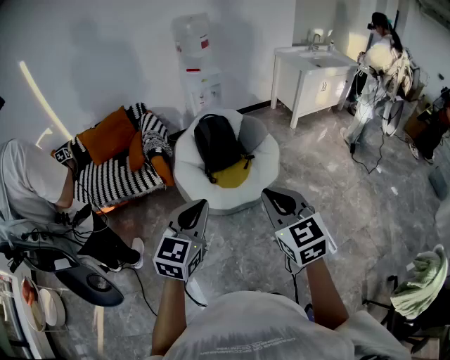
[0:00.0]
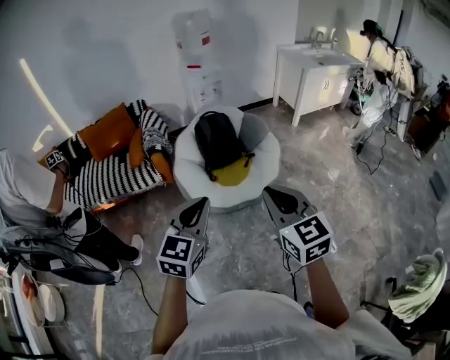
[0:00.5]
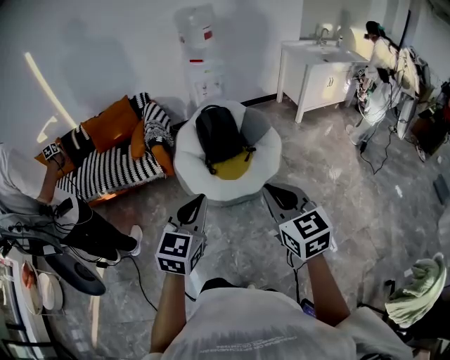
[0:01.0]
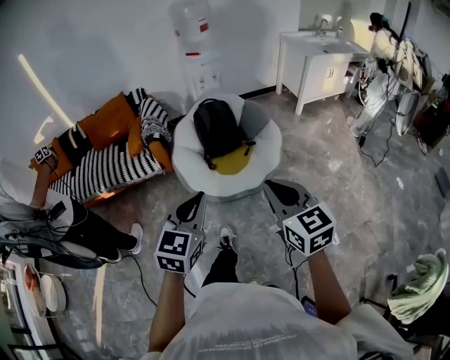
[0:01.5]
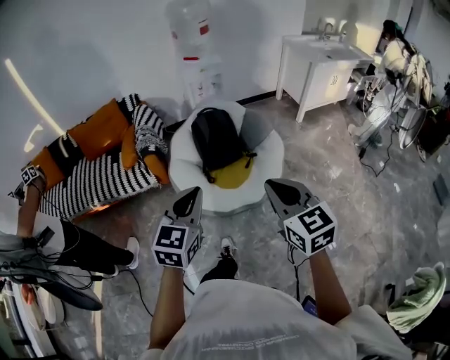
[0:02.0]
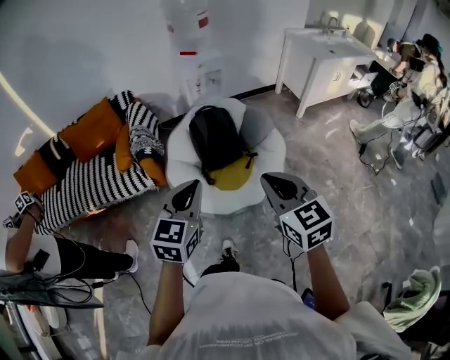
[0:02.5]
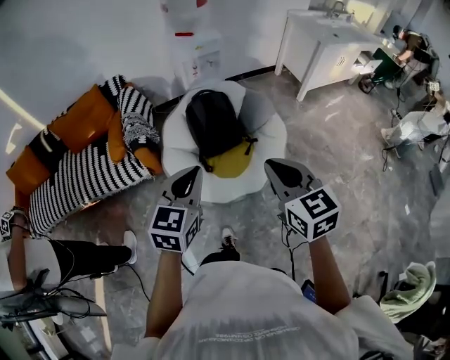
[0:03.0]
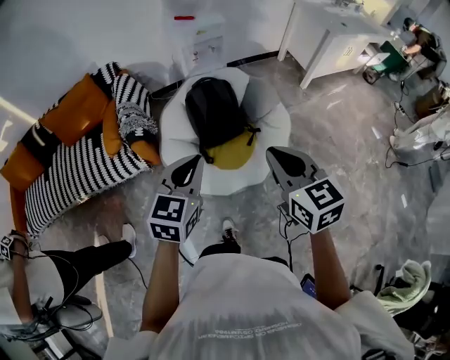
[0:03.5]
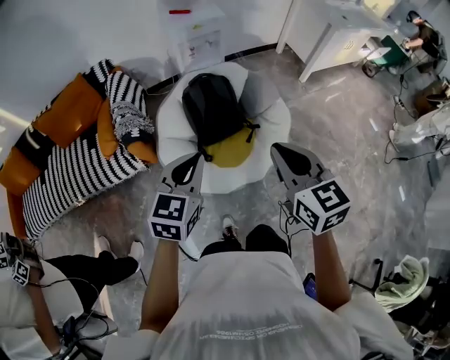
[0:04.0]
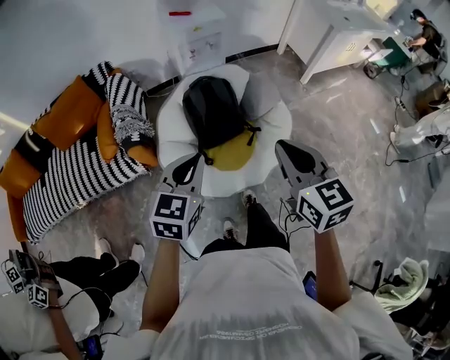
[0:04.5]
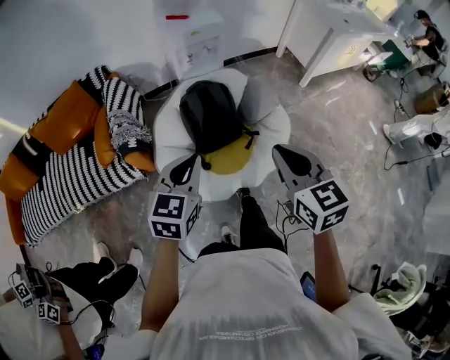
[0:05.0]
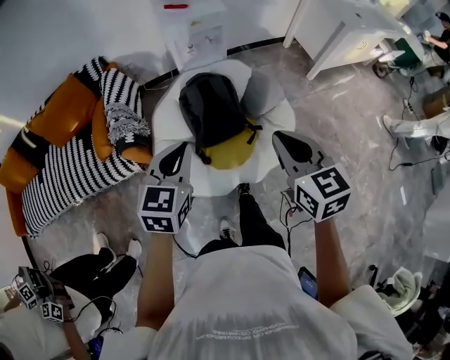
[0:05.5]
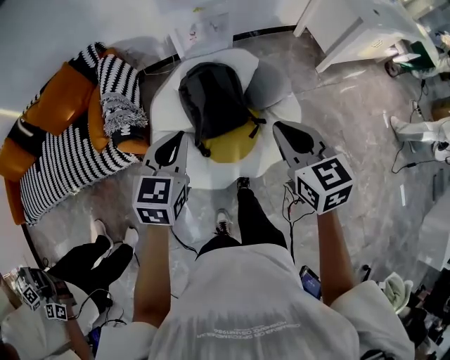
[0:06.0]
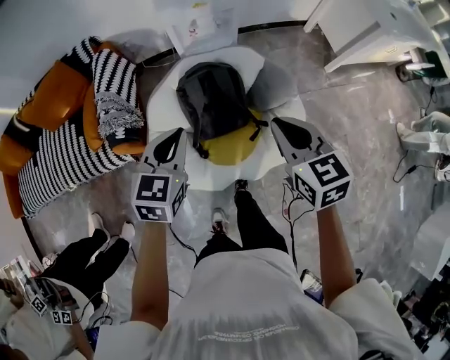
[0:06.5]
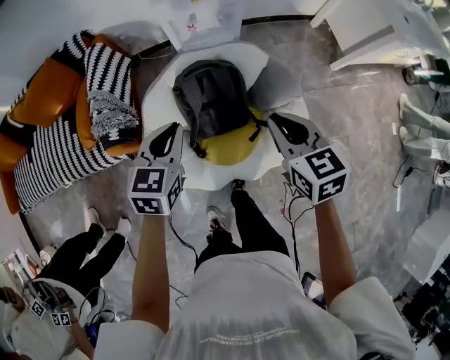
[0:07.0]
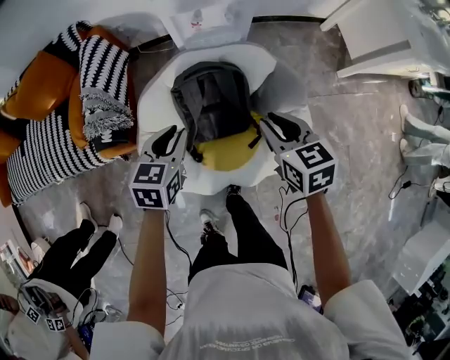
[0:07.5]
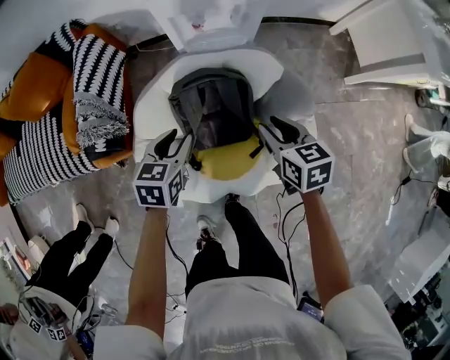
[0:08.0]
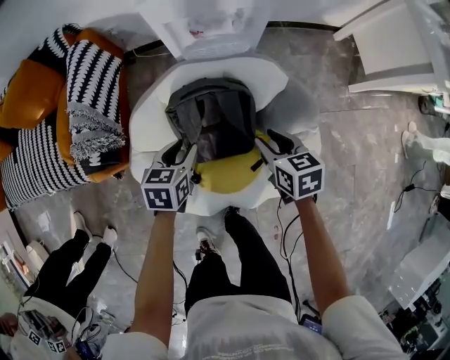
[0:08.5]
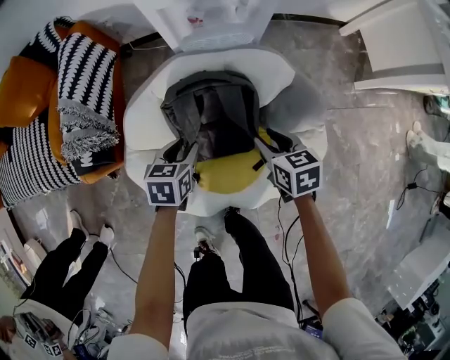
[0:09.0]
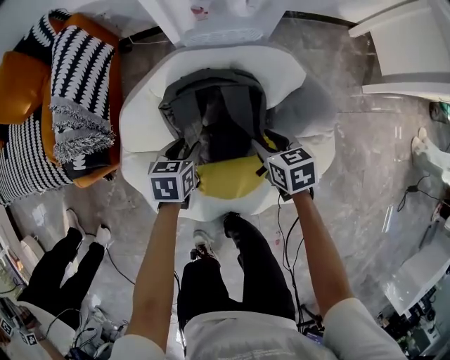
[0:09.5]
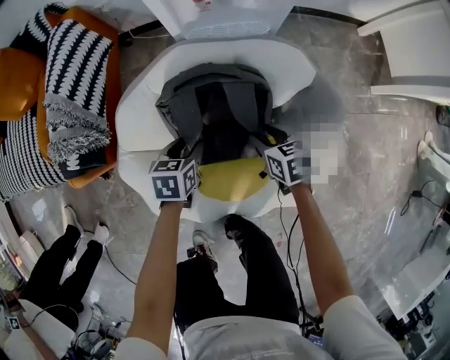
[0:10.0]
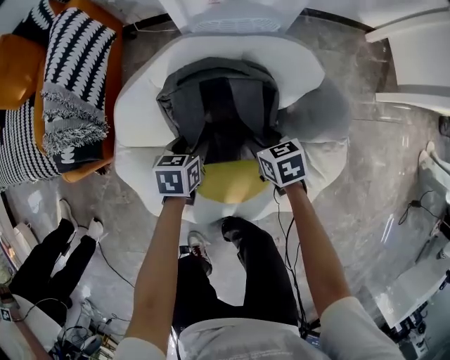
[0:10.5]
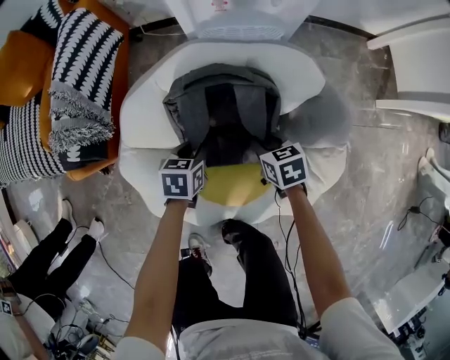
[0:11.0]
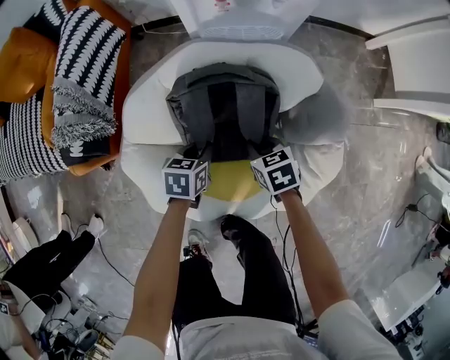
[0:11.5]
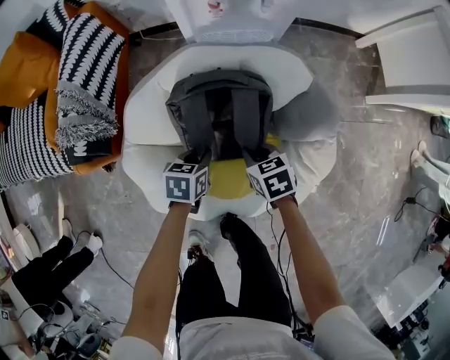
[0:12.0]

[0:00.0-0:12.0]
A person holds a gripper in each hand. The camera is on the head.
0:00.0 to 0:02.0: Both grippers move forward, approximately 15 cm.
0:02.0 to 0:04.0: Both grippers move forward, some 25 cm.
0:04.0 to 0:06.0: The left gripper is displaced forward by approximately 15 cm; the right gripper shifts approximately 20 cm forward and downward.
0:06.0 to 0:08.0: The grippers both shift downward and forward by roughly 35 cm. The right gripper turns by some 20 degrees, and opens up. The left gripper rotates some 30 degrees, and opens its fingers.
0:08.0 to 0:10.0: The two grippers go about 25 cm downward.
0:10.0 to 0:12.0: The right gripper changes place by some 5 cm, and closes; the left gripper shifts by about 5 cm, and closes up.

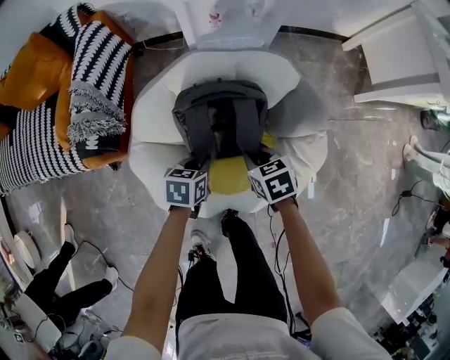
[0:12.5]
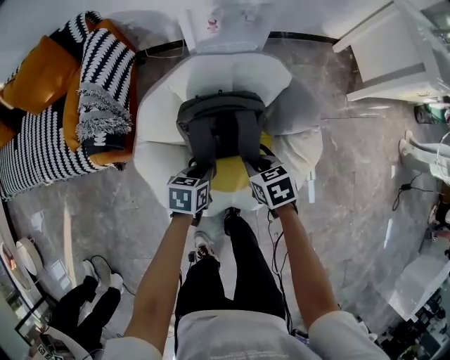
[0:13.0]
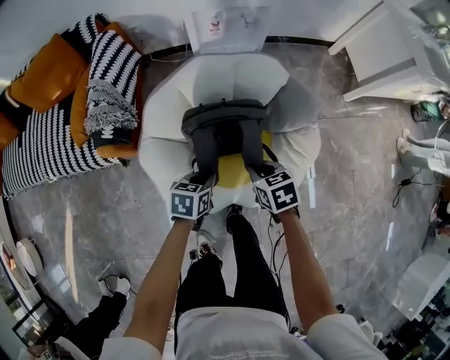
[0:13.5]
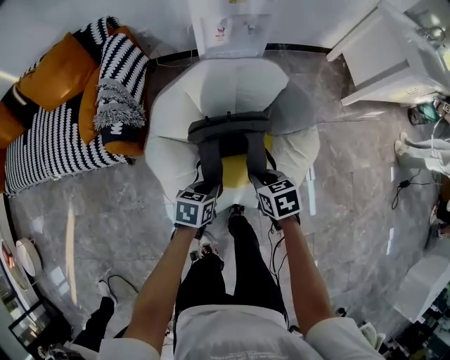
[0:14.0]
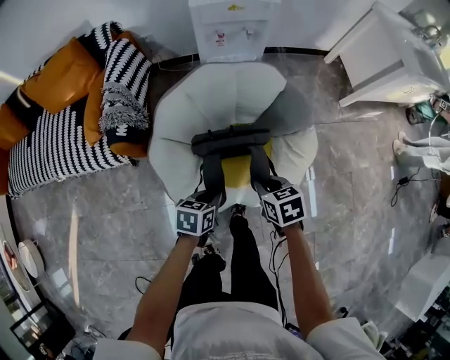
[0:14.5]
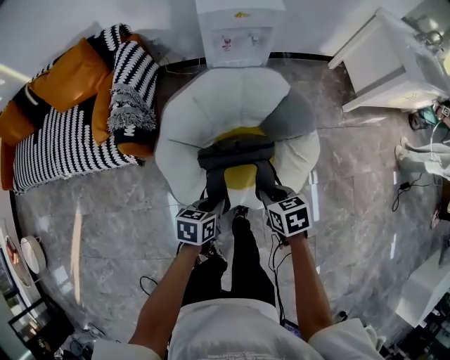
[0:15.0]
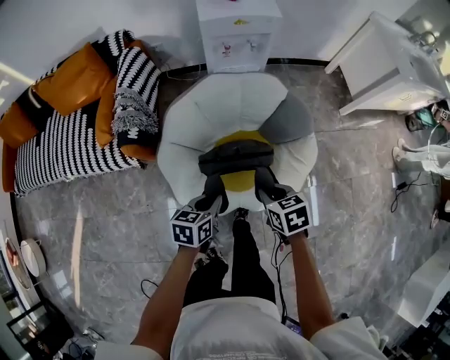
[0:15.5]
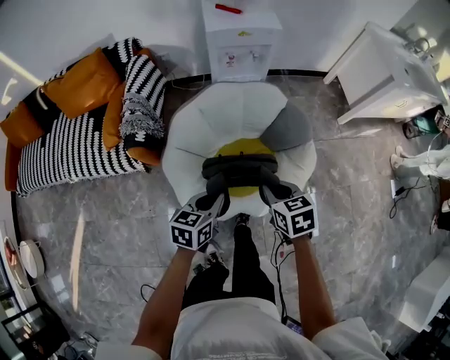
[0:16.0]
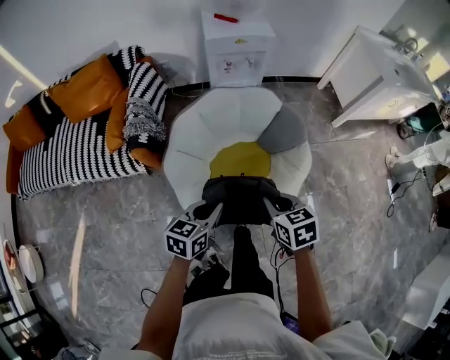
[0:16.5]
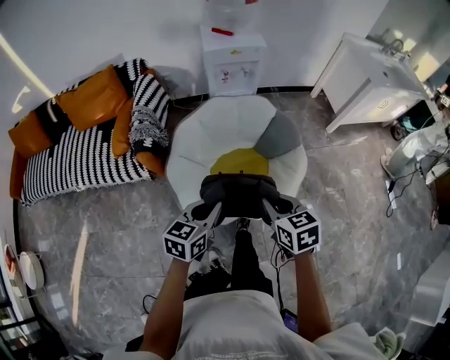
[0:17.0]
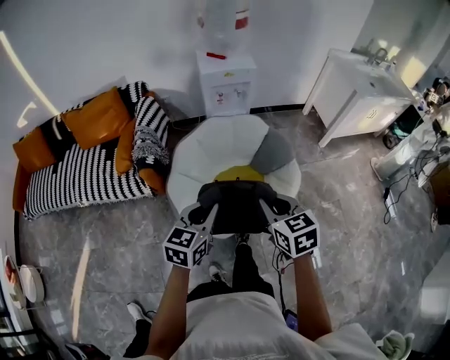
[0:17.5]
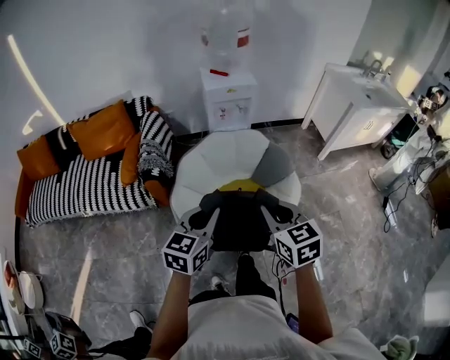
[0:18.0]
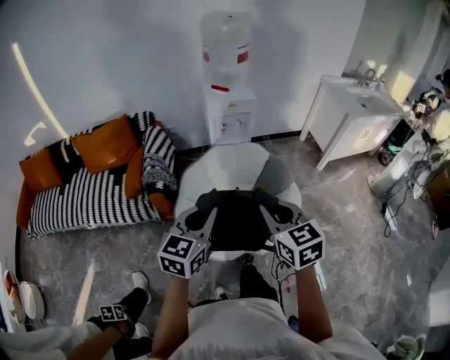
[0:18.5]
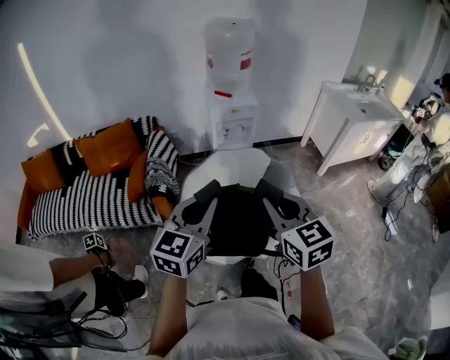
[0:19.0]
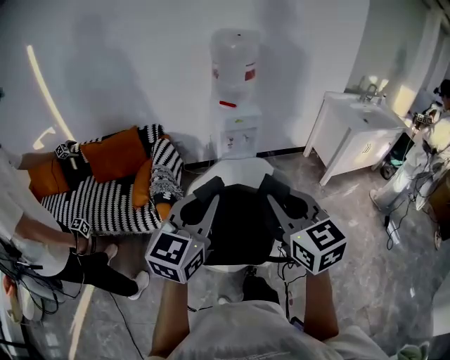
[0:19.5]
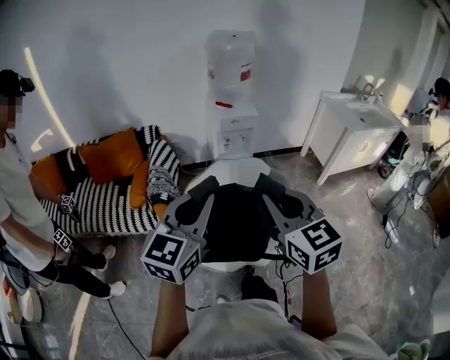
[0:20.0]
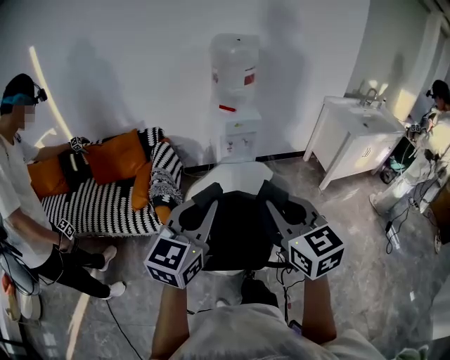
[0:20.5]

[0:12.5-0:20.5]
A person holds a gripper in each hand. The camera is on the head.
0:12.5 to 0:14.5: Both grippers travel together backward and upward, roughly 20 cm.
0:14.5 to 0:16.5: The right gripper travels upward and backward by some 15 cm. Meanwhile the left gripper travels upward by some 15 cm, and turns by about 20 degrees.
0:16.5 to 0:18.5: Both grippers travel together upward, approximately 25 cm. The left gripper swivels roughly 30 degrees. Meanwhile the right gripper swivels approximately 30 degrees.
0:18.5 to 0:20.5: The two grippers go roughly 10 cm upward.

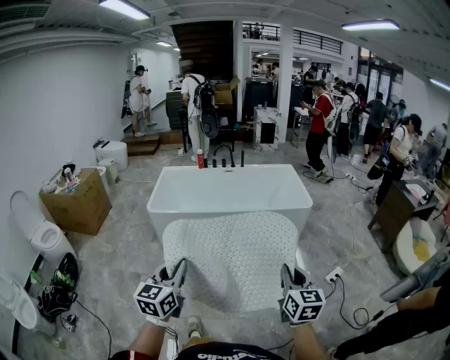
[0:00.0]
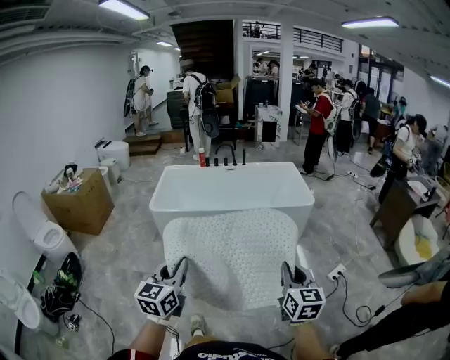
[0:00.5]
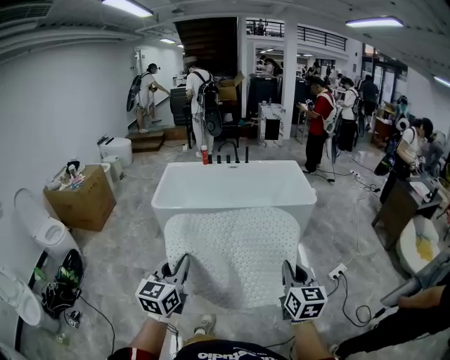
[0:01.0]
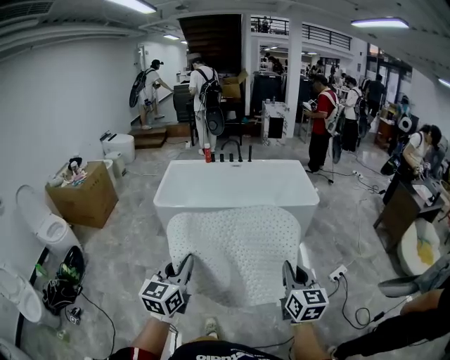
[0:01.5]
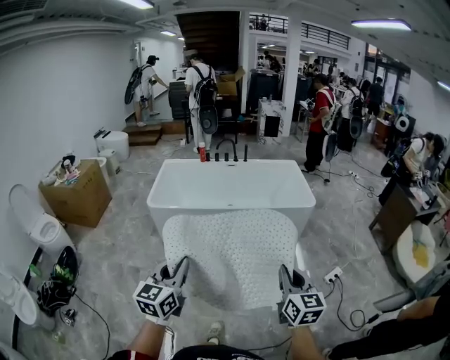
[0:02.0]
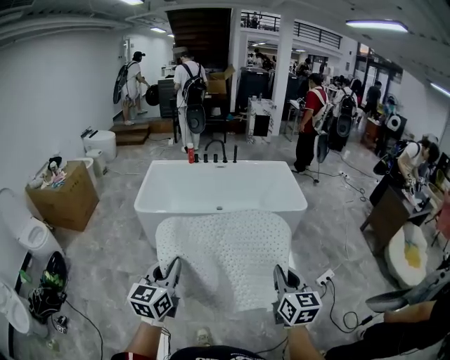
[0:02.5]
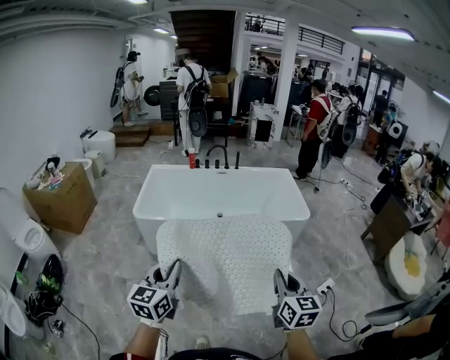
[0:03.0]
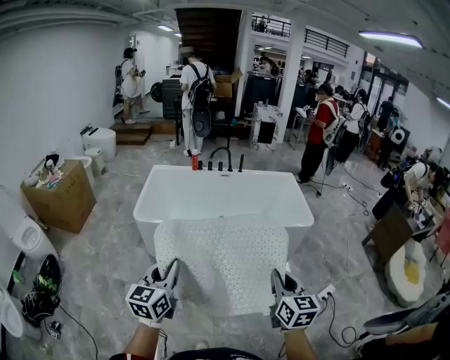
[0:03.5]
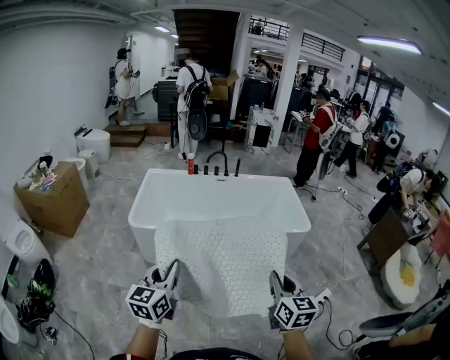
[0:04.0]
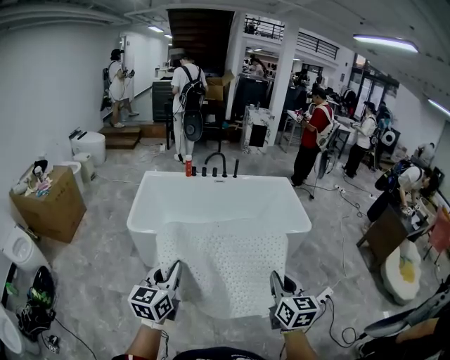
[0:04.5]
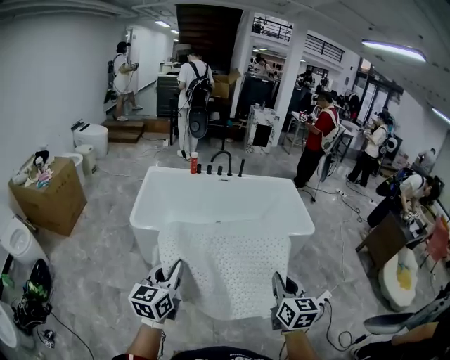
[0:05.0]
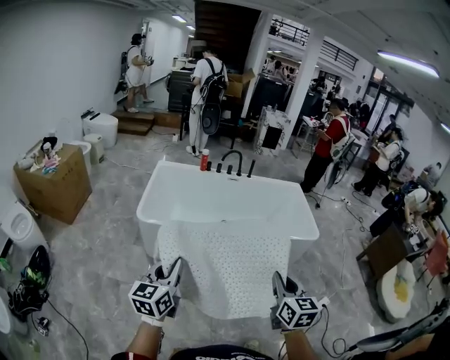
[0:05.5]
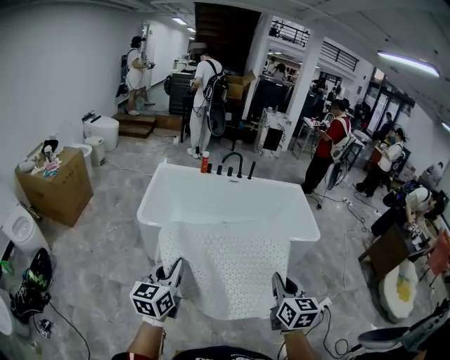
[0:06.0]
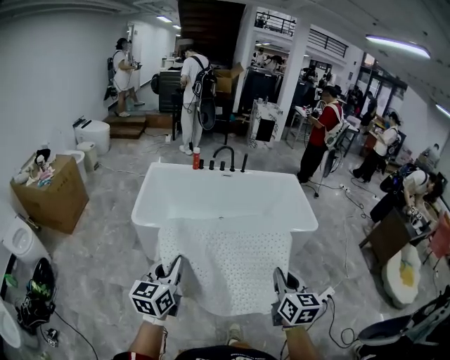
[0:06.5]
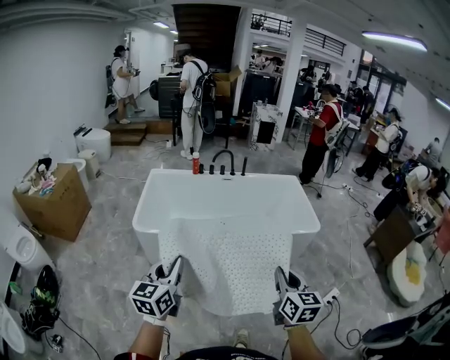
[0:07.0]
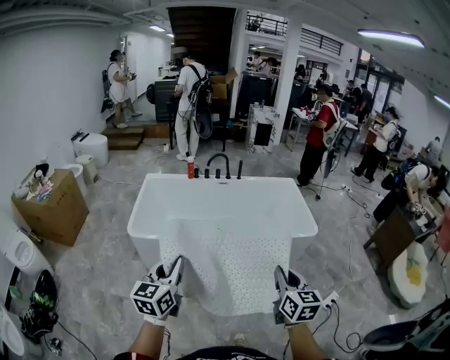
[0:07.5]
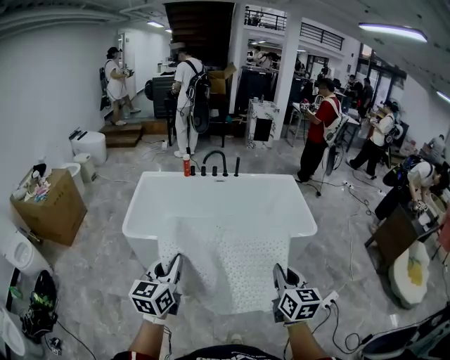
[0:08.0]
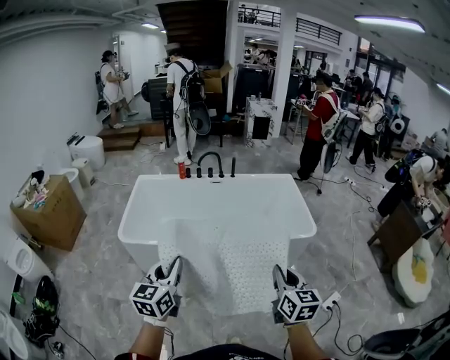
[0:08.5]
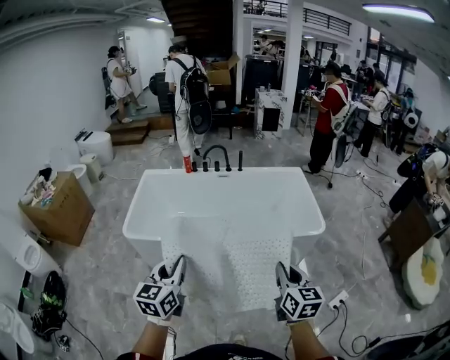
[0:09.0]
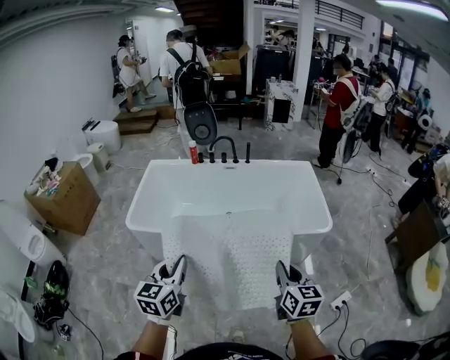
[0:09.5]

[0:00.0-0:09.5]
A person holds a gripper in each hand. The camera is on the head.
0:00.0 to 0:02.0: The grippers move only a little.
0:02.0 to 0:04.0: Both grippers travel together forward, some 20 cm.
0:04.0 to 0:05.5: Both grippers move to the left, approximately 10 cm.
0:05.5 to 0:07.5: The two grippers go some 10 cm to the right and forward.
0:07.5 to 0:09.5: The right gripper is displaced forward, to the right and downward by roughly 20 cm. The left gripper is displaced to the right, forward and downward by roughly 15 cm.
